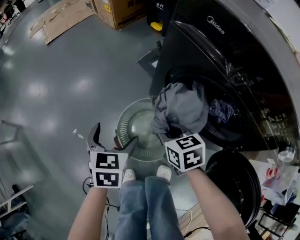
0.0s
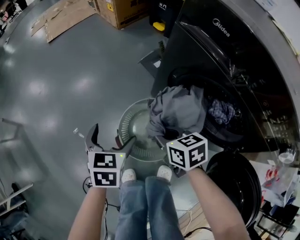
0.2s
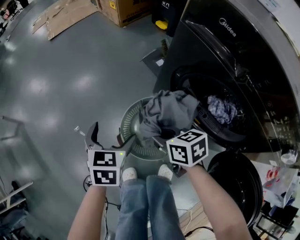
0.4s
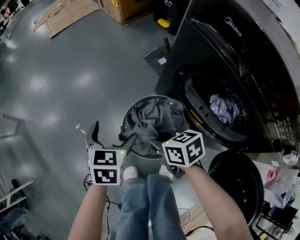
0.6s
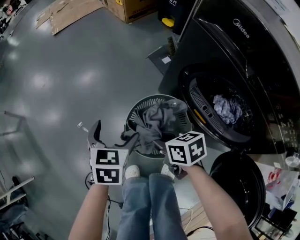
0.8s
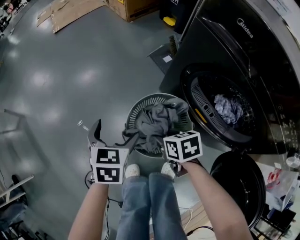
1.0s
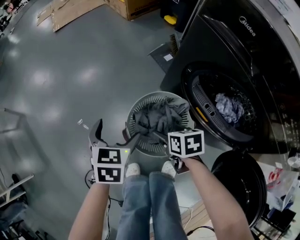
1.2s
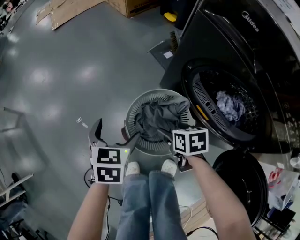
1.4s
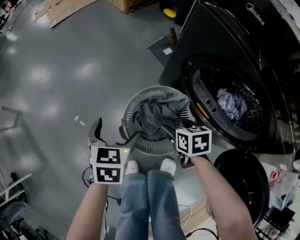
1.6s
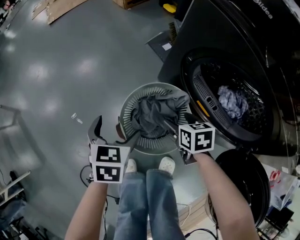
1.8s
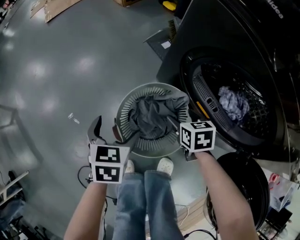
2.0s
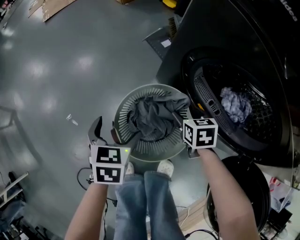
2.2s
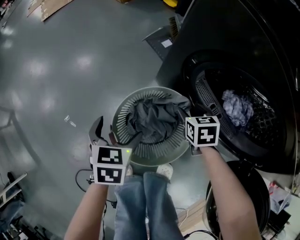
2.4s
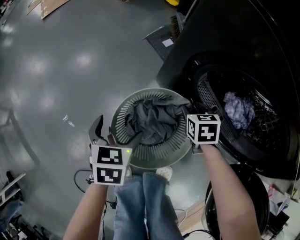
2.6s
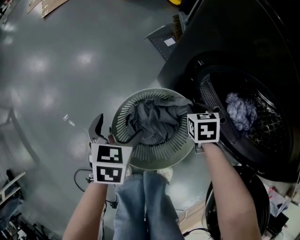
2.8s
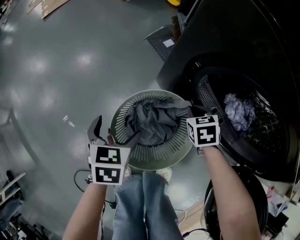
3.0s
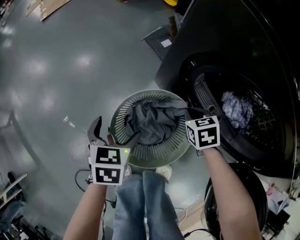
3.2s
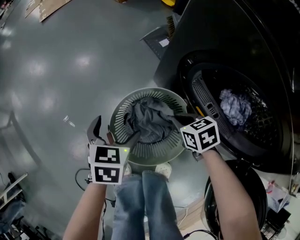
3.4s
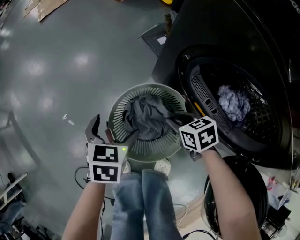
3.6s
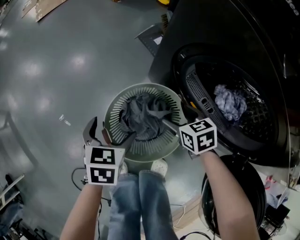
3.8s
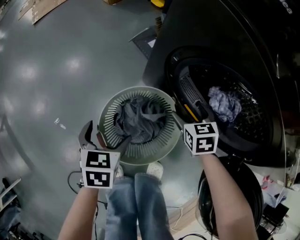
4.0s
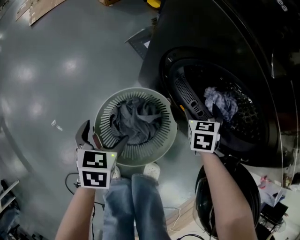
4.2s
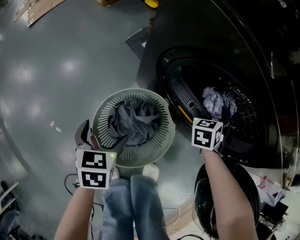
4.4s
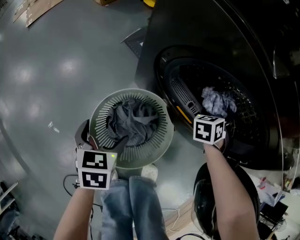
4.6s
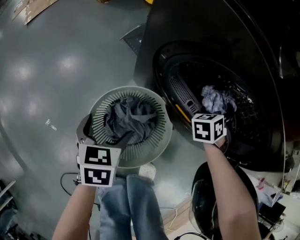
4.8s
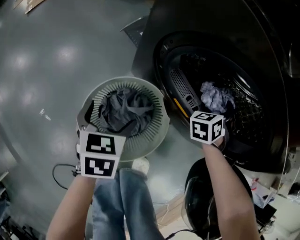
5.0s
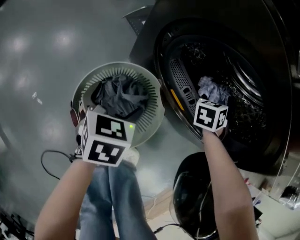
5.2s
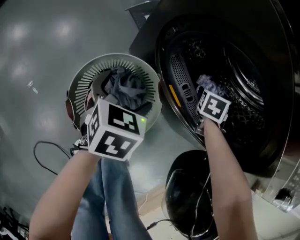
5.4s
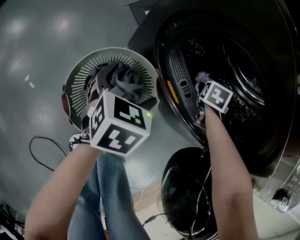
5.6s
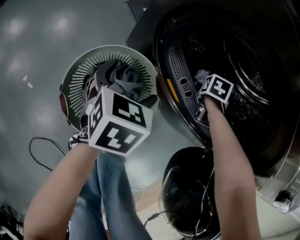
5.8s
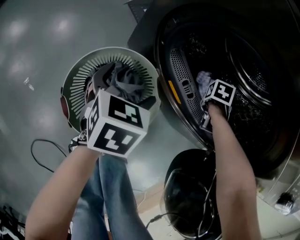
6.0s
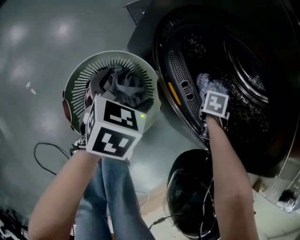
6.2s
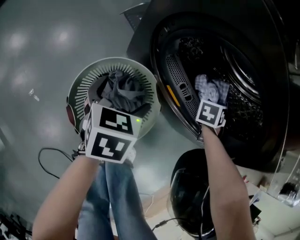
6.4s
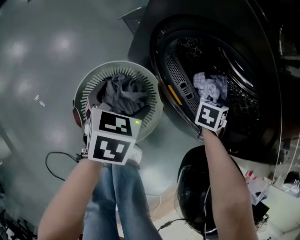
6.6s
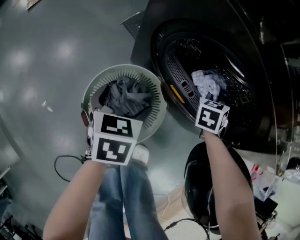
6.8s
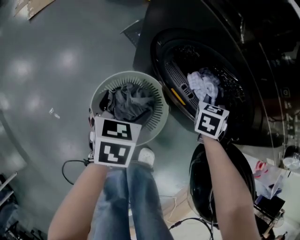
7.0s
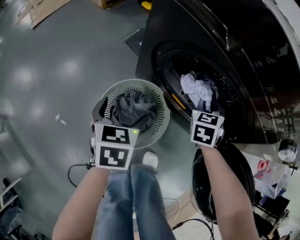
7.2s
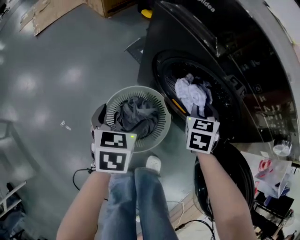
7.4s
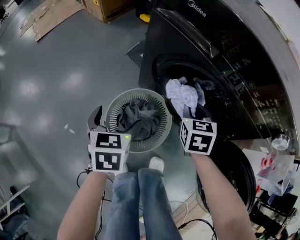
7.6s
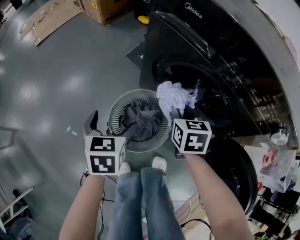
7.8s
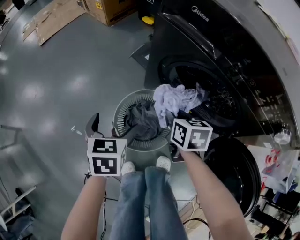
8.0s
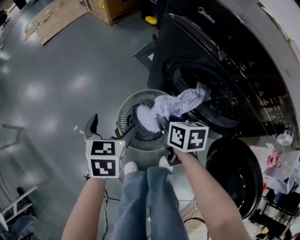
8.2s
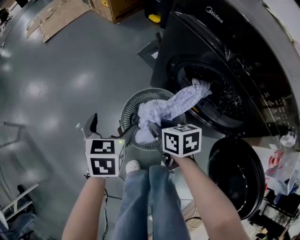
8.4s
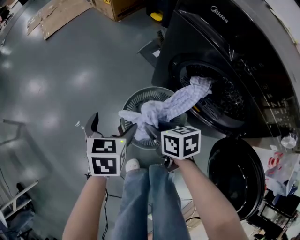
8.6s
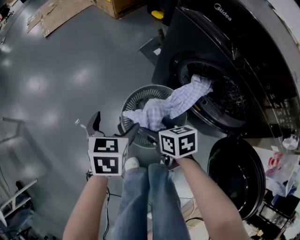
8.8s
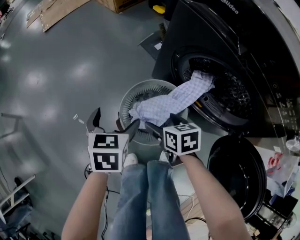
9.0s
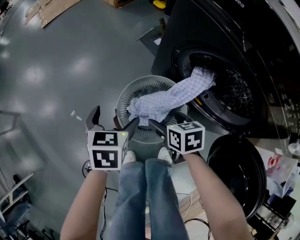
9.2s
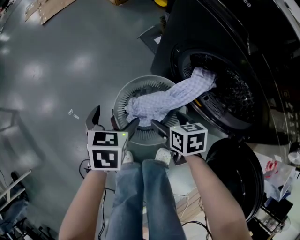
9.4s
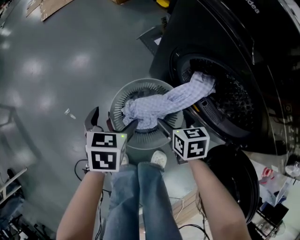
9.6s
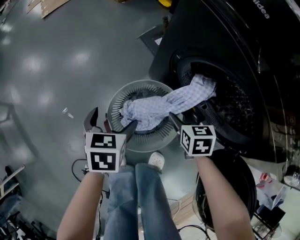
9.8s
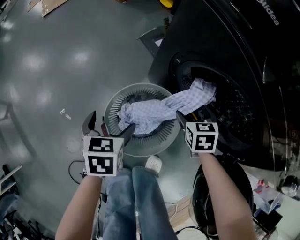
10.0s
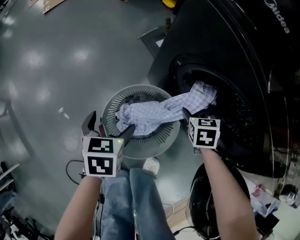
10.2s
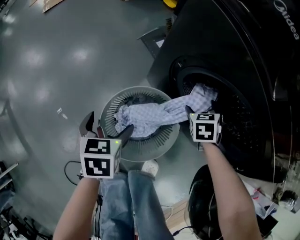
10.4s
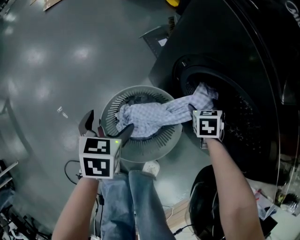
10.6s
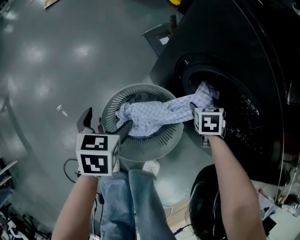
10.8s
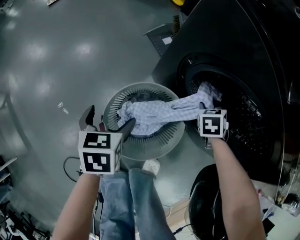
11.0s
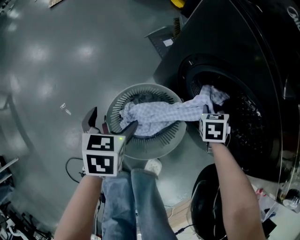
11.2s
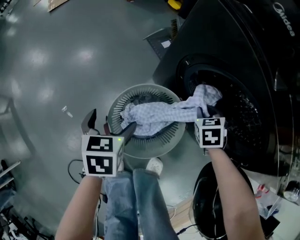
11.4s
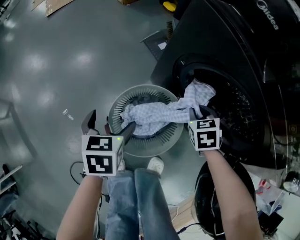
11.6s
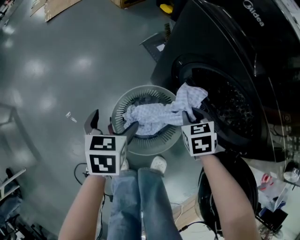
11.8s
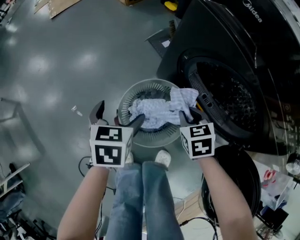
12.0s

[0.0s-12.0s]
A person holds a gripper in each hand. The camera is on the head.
0.0s to 1.6s: The left gripper shifts roughly 5 cm downward. Meanwhile the right gripper shifts roughly 10 cm downward, and opens its fingers.
1.6s to 3.0s: The left gripper moves downward and forward, approximately 10 cm. Meanwhile the right gripper moves forward, to the right and downward, some 15 cm, changes its angle by some 20 degrees, and closes up.
3.0s to 4.4s: The right gripper moves about 15 cm, rotates some 30 degrees, and opens.
4.4s to 6.0s: The right gripper shifts by roughly 15 cm, changes its angle by roughly 30 degrees, and closes up; the left gripper moves roughly 15 cm.
6.0s to 7.6s: The right gripper changes place by about 30 cm, and rotates roughly 40 degrees. The left gripper moves upward, some 15 cm.
7.6s to 9.0s: The right gripper ends up about 20 cm from where it was, changes its angle by some 40 degrees, and opens. Meanwhile the left gripper moves approximately 10 cm.
9.0s to 10.4s: The right gripper ends up about 25 cm from where it was, and swivels approximately 40 degrees. Meanwhile the left gripper travels downward by approximately 10 cm.
10.4s to 12.0s: The left gripper heads upward, covering about 5 cm. Meanwhile the right gripper travels backward, to the left and upward by about 20 cm, and closes.

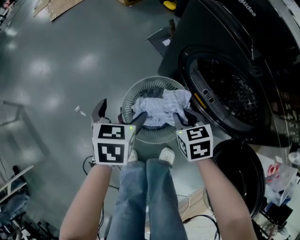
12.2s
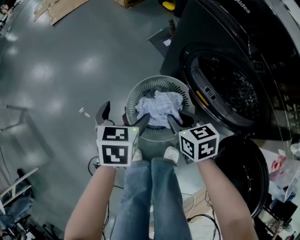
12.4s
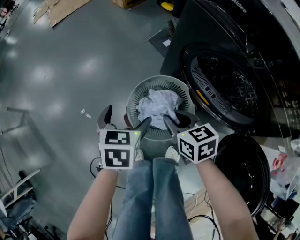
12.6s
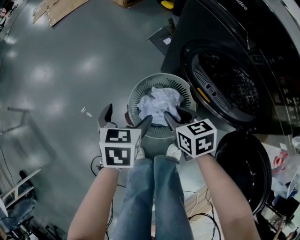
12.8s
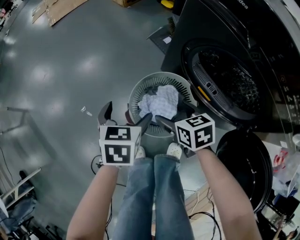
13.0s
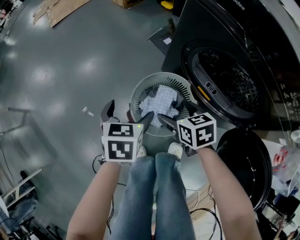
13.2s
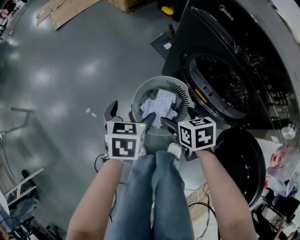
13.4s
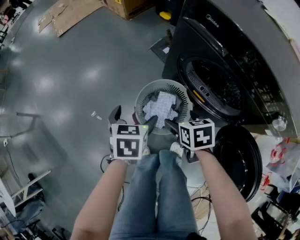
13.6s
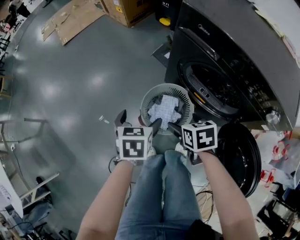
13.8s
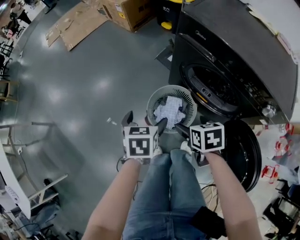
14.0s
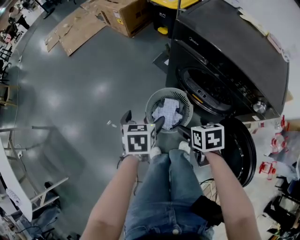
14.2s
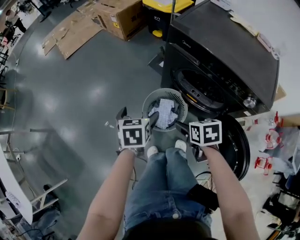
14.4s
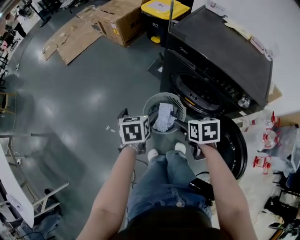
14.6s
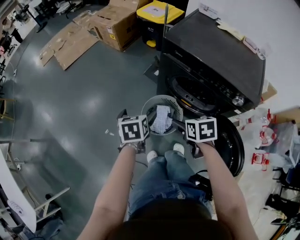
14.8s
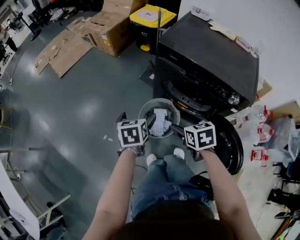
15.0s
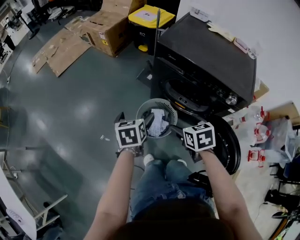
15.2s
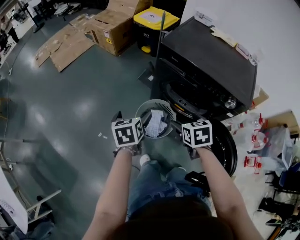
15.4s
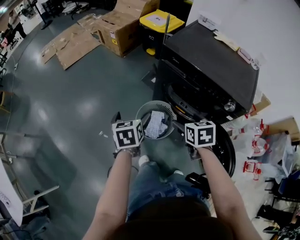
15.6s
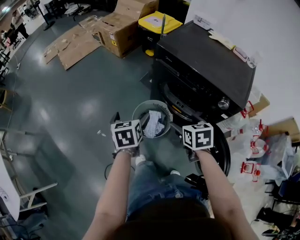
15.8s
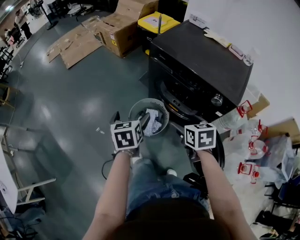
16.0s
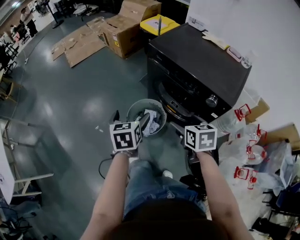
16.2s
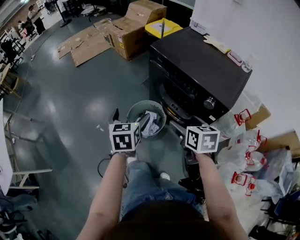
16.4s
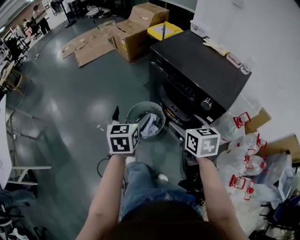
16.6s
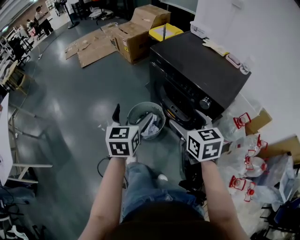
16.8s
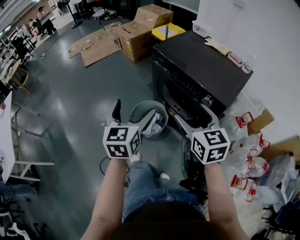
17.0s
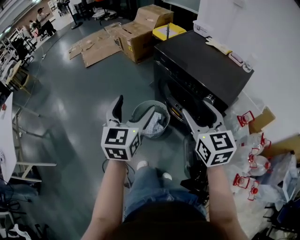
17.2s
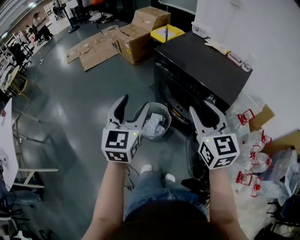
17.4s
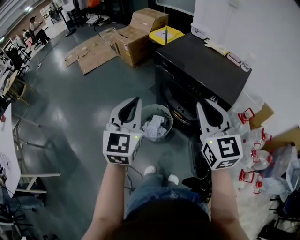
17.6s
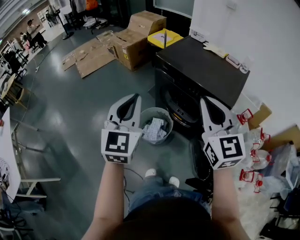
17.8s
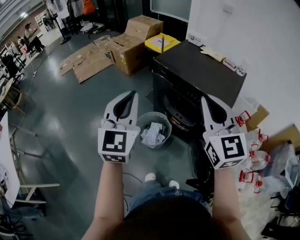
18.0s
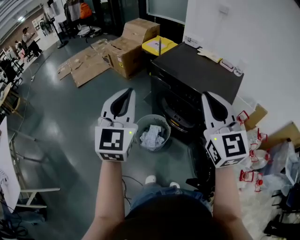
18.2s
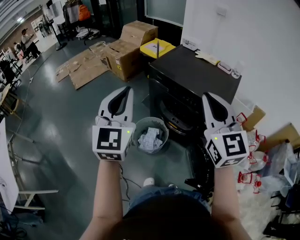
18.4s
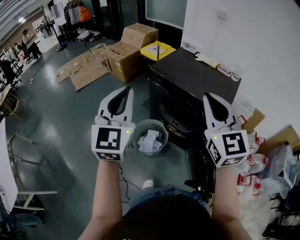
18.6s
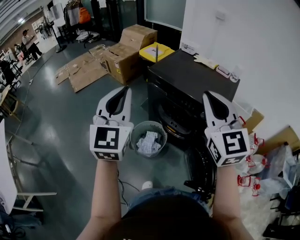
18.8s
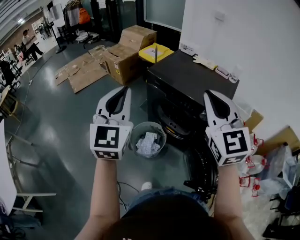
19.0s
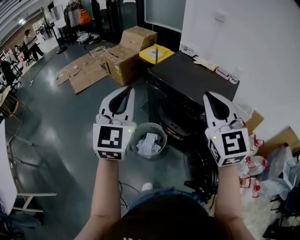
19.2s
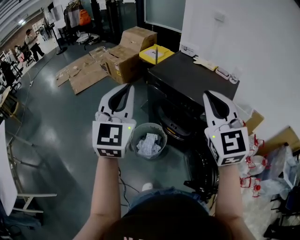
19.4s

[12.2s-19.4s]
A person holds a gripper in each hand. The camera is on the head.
12.2s to 13.6s: The left gripper heads upward, covering some 10 cm. The right gripper shifts some 10 cm upward and backward, and opens its fingers.
13.6s to 15.0s: Both grippers travel together upward, some 20 cm.
15.0s to 16.6s: The right gripper heads to the right, upward and backward, covering some 20 cm, and swivels some 20 degrees. Meanwhile the left gripper moves backward, to the right and upward, approximately 25 cm, and changes its angle by about 20 degrees.
16.6s to 18.0s: Both grippers travel together upward, roughly 20 cm. The left gripper swivels about 40 degrees, and closes up. The right gripper tips its fingers upward by some 40 degrees, and closes.
18.0s to 19.4s: The left gripper moves upward, roughly 5 cm.

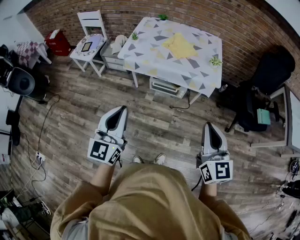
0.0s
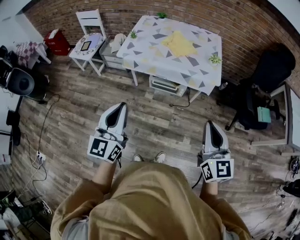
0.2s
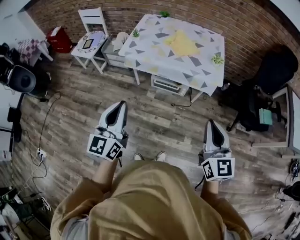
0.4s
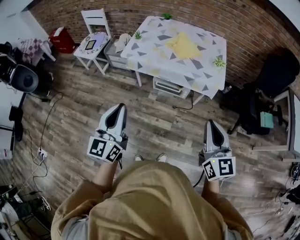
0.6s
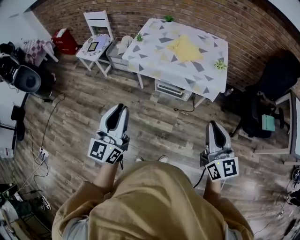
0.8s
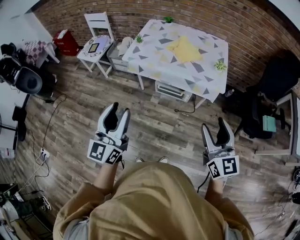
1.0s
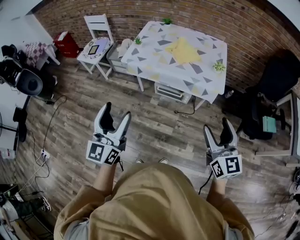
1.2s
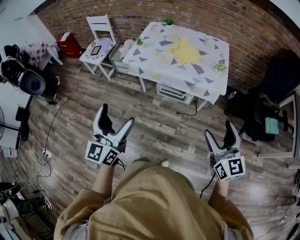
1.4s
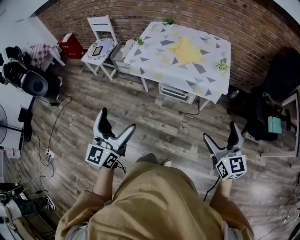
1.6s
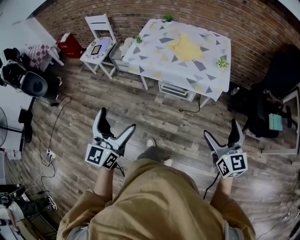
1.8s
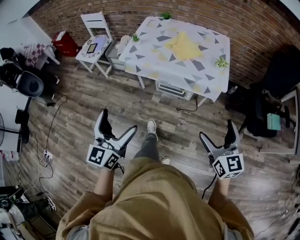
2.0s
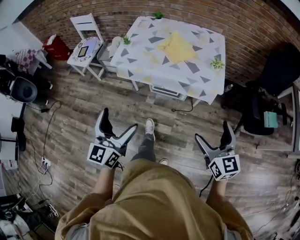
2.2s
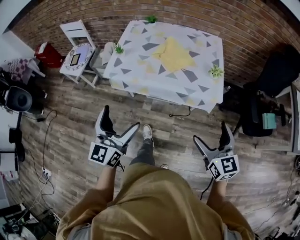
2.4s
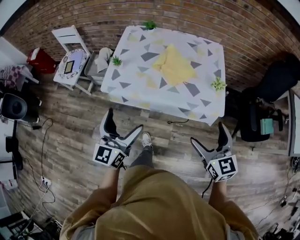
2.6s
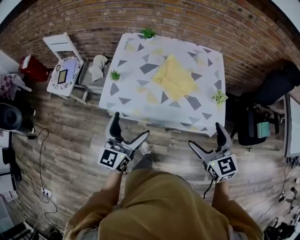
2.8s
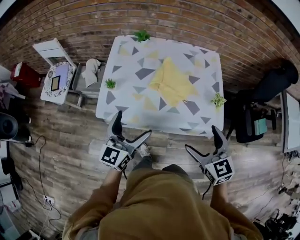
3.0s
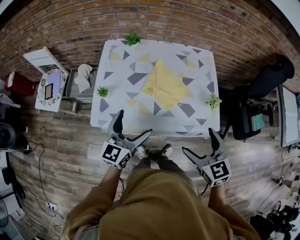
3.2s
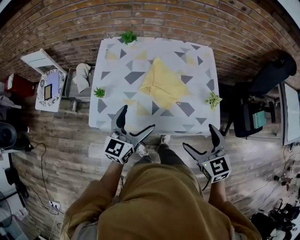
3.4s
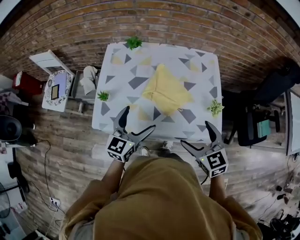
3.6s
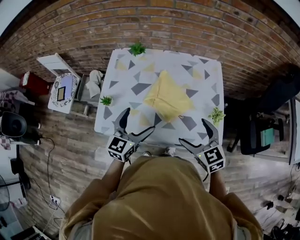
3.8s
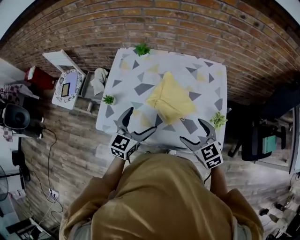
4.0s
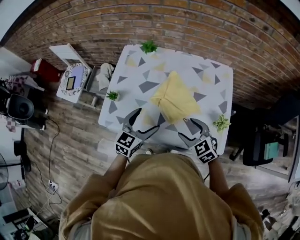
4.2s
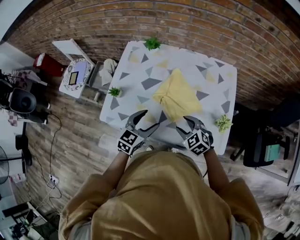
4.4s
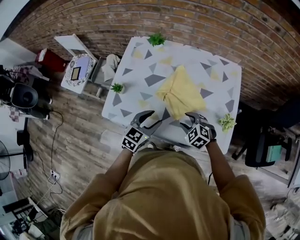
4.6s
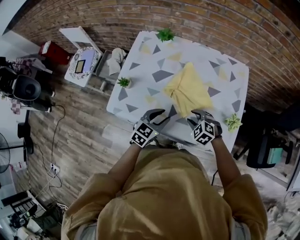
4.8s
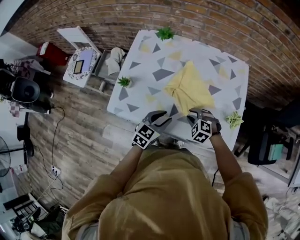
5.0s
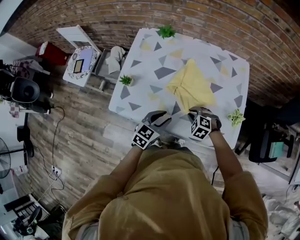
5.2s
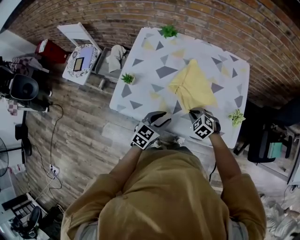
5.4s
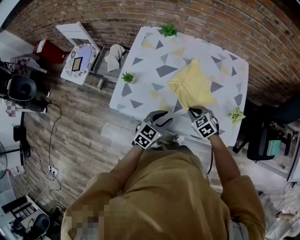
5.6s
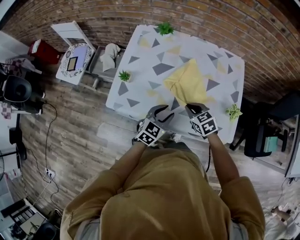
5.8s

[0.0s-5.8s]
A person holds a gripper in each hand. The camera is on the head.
0.0s to 1.4s: The left gripper opens up. The right gripper shifts about 5 cm to the right, and opens up.
1.4s to 2.8s: Both grippers travel together forward, roughly 35 cm. The right gripper swivels approximately 20 degrees.
2.8s to 4.4s: The right gripper is displaced downward and forward by roughly 25 cm, changes its angle by roughly 40 degrees, and closes its fingers. Meanwhile the left gripper heads forward, downward and to the right, covering roughly 25 cm, swivels roughly 30 degrees, and closes up.
4.4s to 5.8s: The left gripper shifts approximately 5 cm downward. The right gripper travels downward and back again, about 10 cm each way, and closes up.
